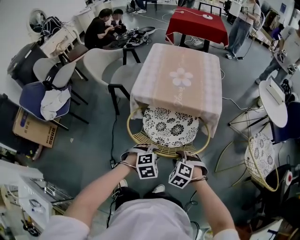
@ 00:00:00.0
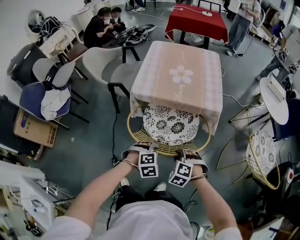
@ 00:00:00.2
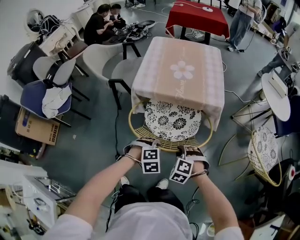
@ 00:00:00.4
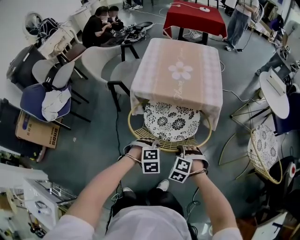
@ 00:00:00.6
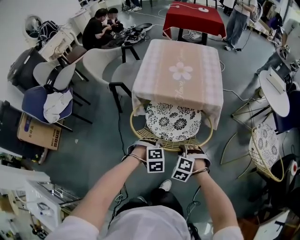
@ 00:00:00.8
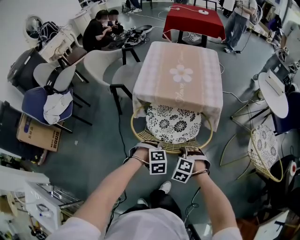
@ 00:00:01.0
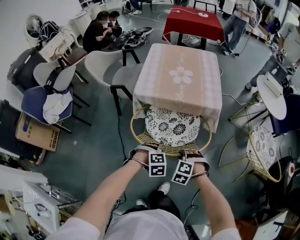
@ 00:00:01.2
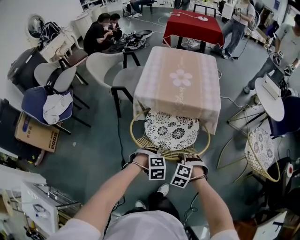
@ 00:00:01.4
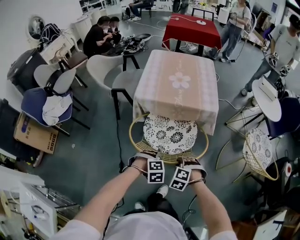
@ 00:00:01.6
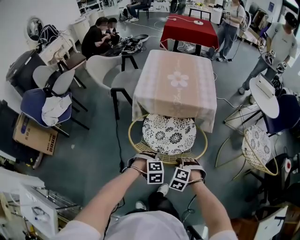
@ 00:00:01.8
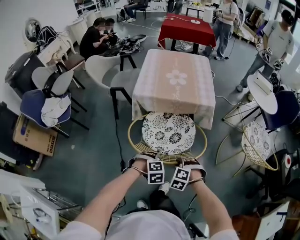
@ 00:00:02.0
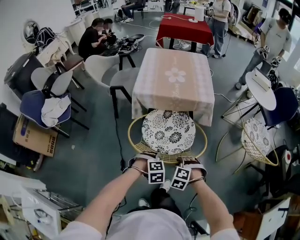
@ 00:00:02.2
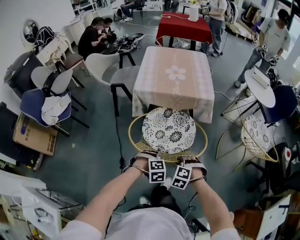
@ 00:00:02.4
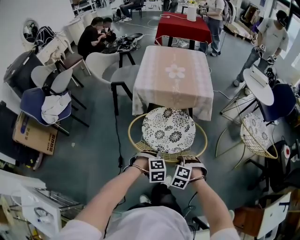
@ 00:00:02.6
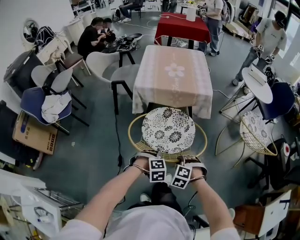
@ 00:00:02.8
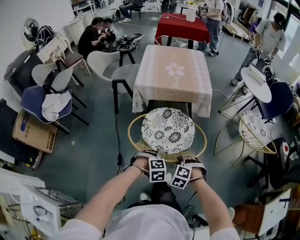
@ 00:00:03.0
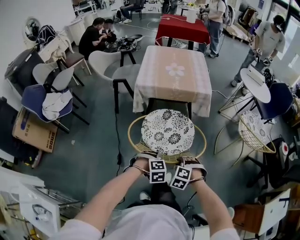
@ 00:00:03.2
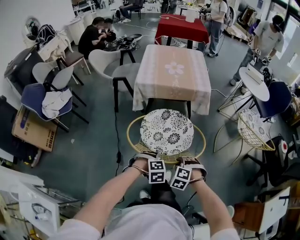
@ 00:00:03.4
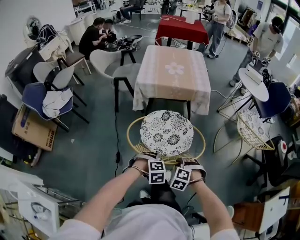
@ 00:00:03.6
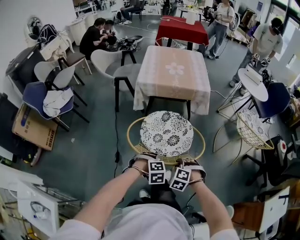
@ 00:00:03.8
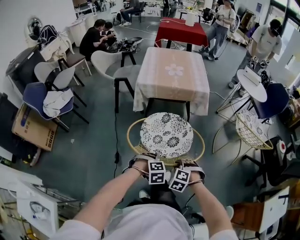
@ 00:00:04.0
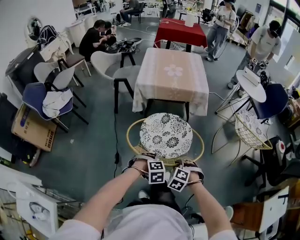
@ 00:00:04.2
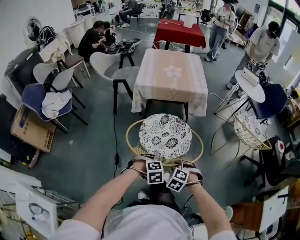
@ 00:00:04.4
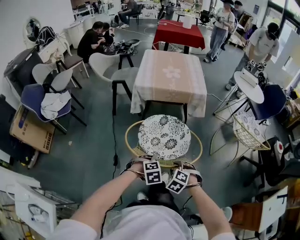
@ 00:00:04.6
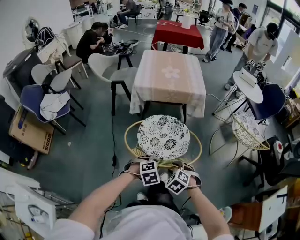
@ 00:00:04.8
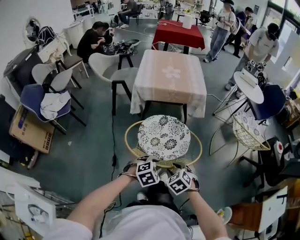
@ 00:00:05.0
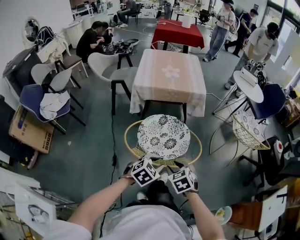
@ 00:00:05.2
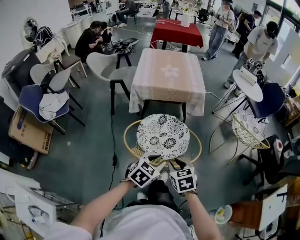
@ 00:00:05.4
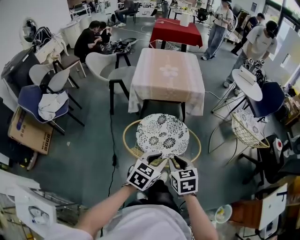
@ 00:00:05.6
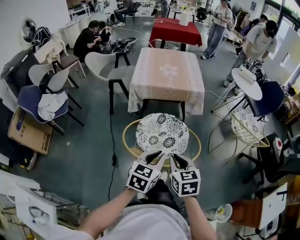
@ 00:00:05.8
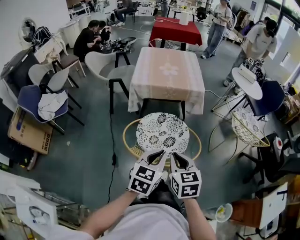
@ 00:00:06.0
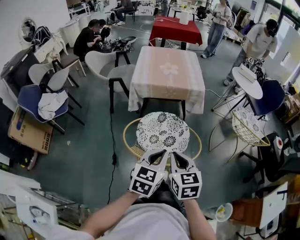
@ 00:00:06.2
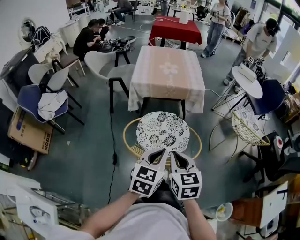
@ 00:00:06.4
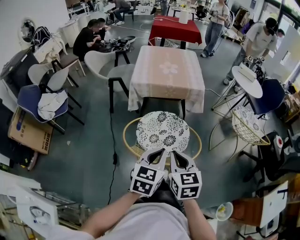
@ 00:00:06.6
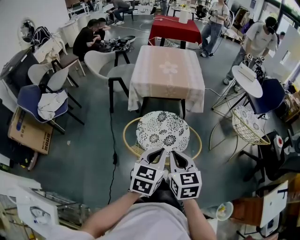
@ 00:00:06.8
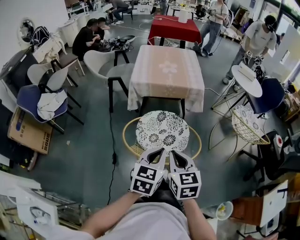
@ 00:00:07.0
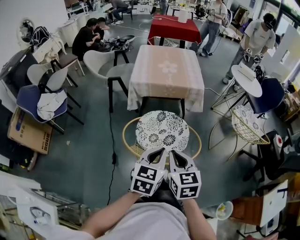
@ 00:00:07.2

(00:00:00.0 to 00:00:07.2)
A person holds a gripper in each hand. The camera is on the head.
00:00:00.0 - 00:00:01.4: The left gripper closes.
00:00:01.4 - 00:00:02.8: The two grippers go approximately 15 cm backward.
00:00:02.8 - 00:00:04.4: Both grippers travel together backward, approximately 10 cm.
00:00:04.4 - 00:00:05.8: The grippers both shift upward by some 20 cm. The left gripper points its fingers some 50 degrees further upward, while the right gripper rotates around the line of its fingers by roughly 60 degrees, clockwise from behind, and closes.
00:00:05.8 - 00:00:07.2: The grippers make only small movements.

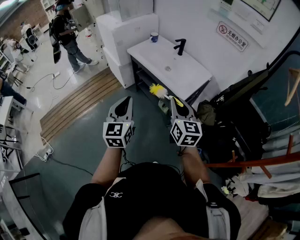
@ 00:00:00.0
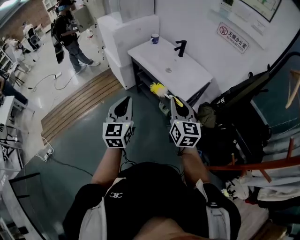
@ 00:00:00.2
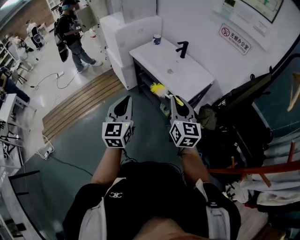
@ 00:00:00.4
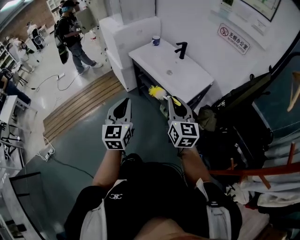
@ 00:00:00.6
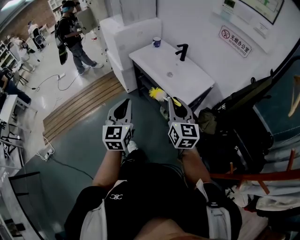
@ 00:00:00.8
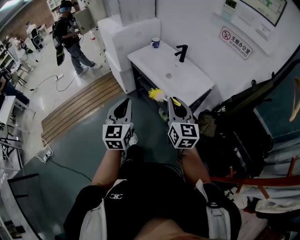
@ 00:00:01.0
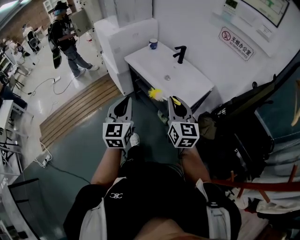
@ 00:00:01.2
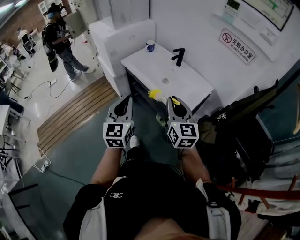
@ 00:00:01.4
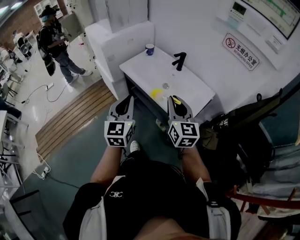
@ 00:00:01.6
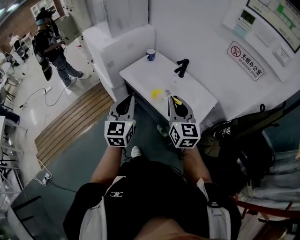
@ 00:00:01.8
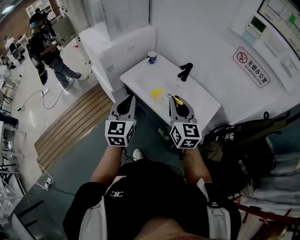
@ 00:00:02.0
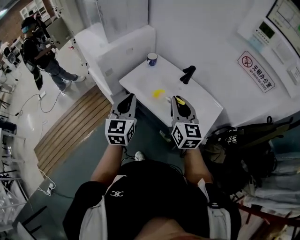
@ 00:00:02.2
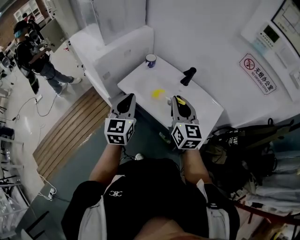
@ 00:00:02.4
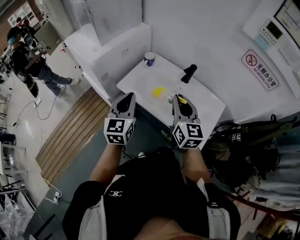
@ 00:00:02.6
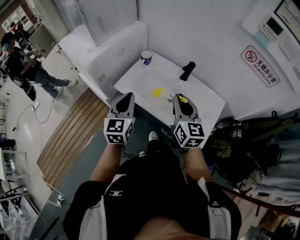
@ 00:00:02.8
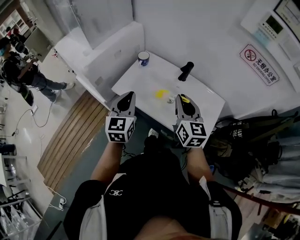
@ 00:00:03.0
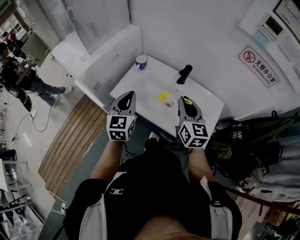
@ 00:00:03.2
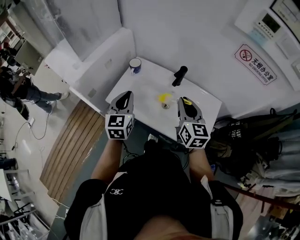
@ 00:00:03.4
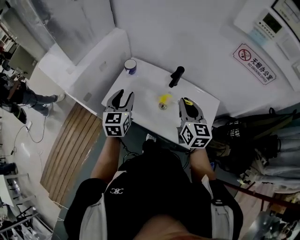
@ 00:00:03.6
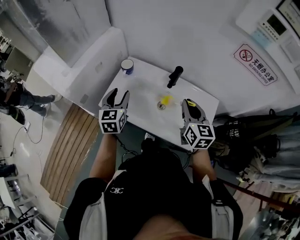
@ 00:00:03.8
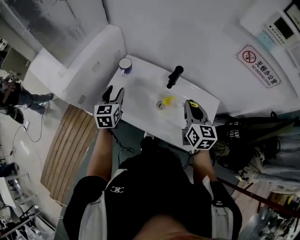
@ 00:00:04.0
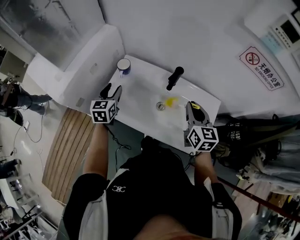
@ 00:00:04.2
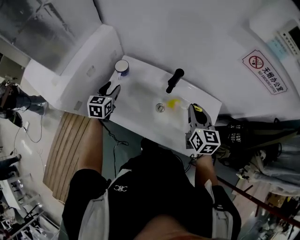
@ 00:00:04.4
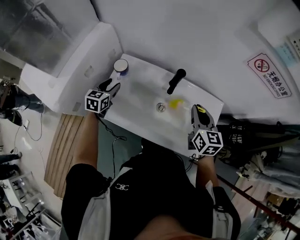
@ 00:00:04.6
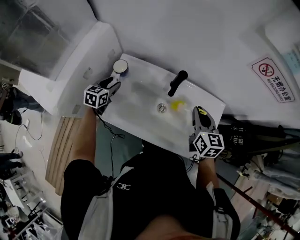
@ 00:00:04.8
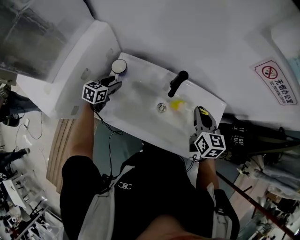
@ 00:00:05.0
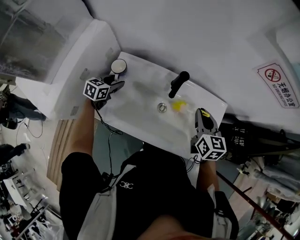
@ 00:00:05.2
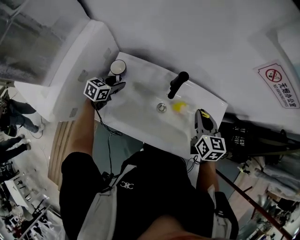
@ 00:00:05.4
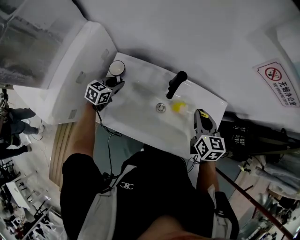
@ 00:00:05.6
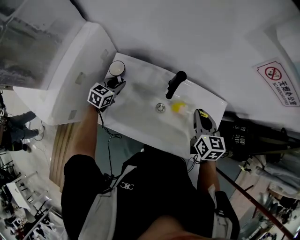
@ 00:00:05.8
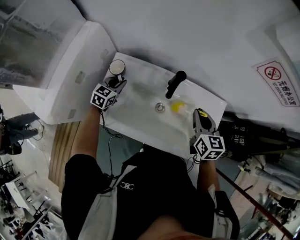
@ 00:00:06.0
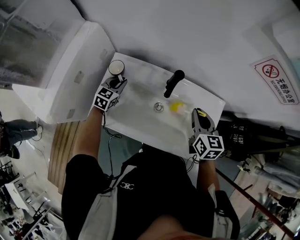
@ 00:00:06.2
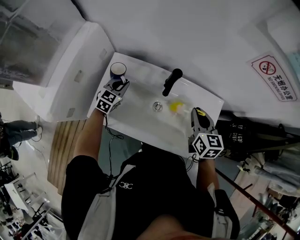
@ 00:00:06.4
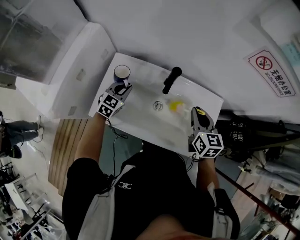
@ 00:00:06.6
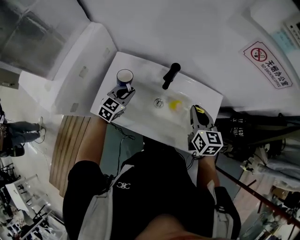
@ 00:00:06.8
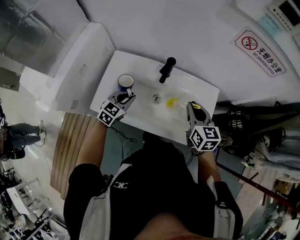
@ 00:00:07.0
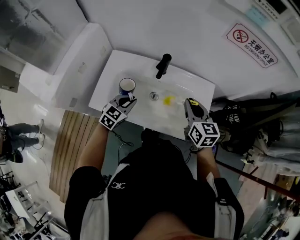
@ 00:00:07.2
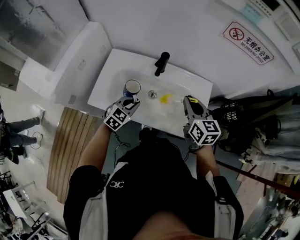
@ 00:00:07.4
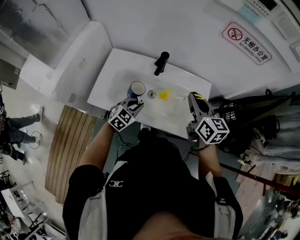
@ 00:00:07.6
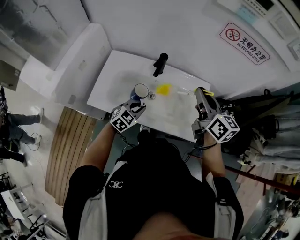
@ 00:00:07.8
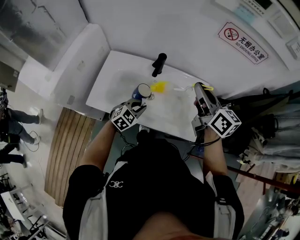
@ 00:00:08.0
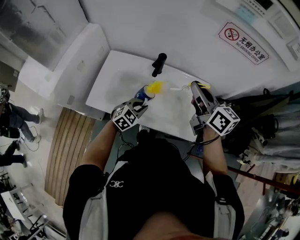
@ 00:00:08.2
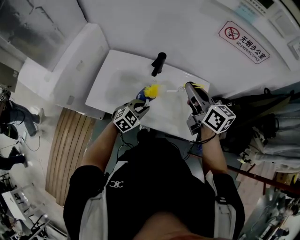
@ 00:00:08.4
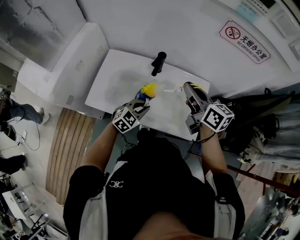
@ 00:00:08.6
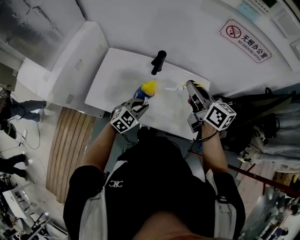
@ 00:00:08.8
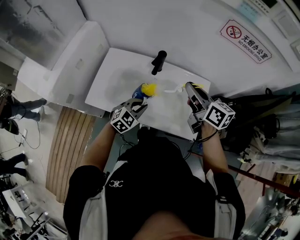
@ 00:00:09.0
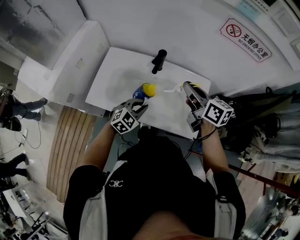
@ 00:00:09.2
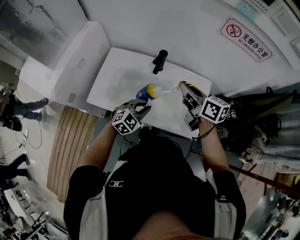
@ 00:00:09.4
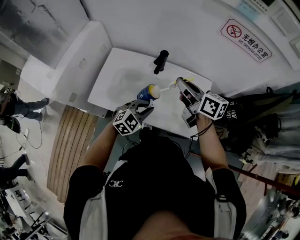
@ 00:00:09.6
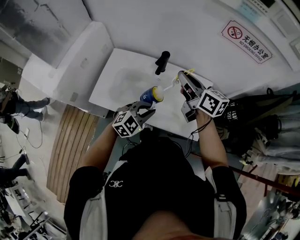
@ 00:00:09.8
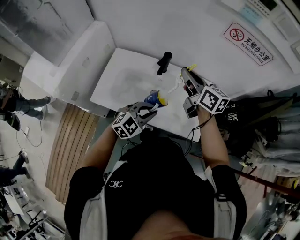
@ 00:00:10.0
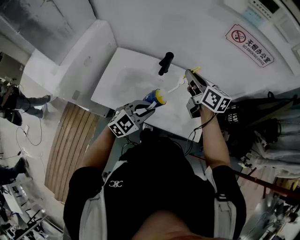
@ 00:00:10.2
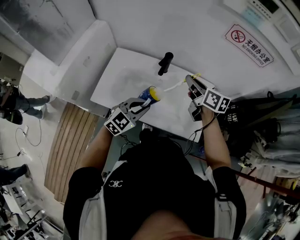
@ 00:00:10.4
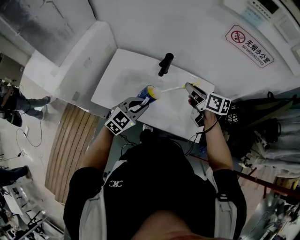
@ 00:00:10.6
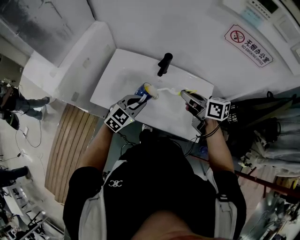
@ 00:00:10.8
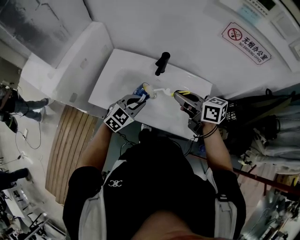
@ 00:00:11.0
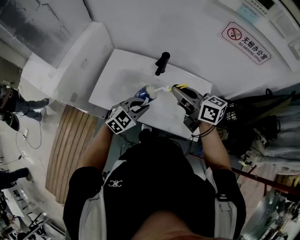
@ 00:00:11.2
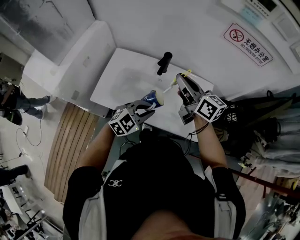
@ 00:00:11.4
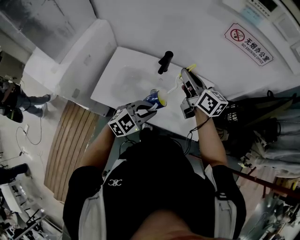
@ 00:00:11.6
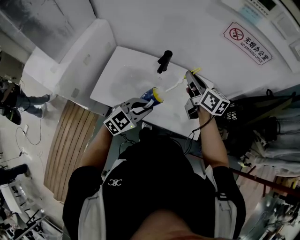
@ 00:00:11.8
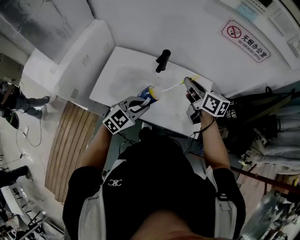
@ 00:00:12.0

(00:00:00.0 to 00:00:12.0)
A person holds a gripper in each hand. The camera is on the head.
00:00:00.0 - 00:00:01.6: The two grippers go roughly 20 cm forward.
00:00:01.6 - 00:00:03.0: The grippers both shift forward by some 25 cm.
00:00:03.0 - 00:00:04.4: The right gripper travels to the right, forward and downward by roughly 20 cm. The left gripper goes some 30 cm forward and downward, swivels some 20 degrees, and opens its fingers.
00:00:04.4 - 00:00:06.0: The right gripper heads downward, covering approximately 5 cm; the left gripper is displaced downward and forward by roughly 15 cm, swivels some 30 degrees, and closes up.
00:00:06.0 - 00:00:07.6: The right gripper travels upward and backward by about 15 cm. Meanwhile the left gripper shifts some 25 cm to the right and backward, and rotates roughly 20 degrees.
00:00:09.0 - 00:00:10.4: The left gripper travels upward by about 10 cm; the right gripper moves about 5 cm.
00:00:10.4 - 00:00:12.0: The right gripper moves approximately 5 cm upward and comes back.

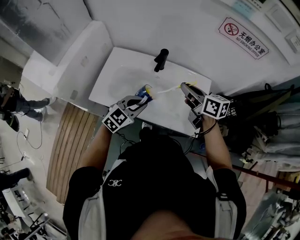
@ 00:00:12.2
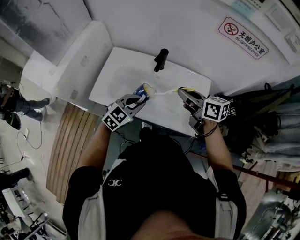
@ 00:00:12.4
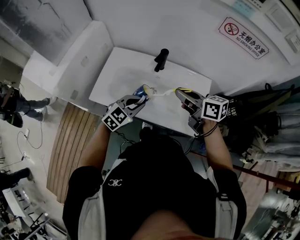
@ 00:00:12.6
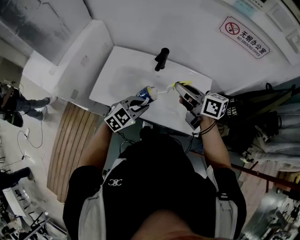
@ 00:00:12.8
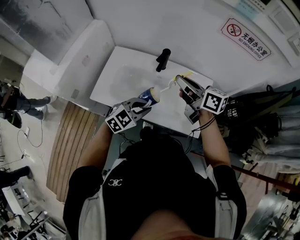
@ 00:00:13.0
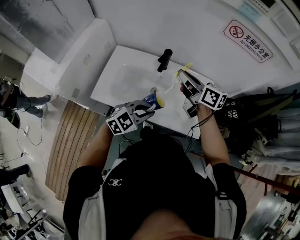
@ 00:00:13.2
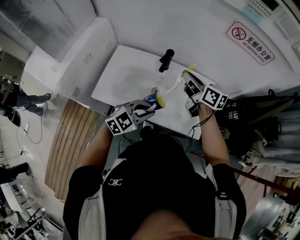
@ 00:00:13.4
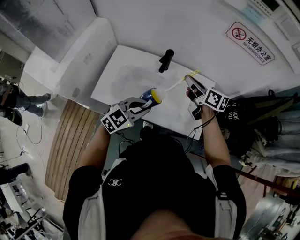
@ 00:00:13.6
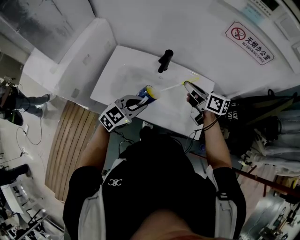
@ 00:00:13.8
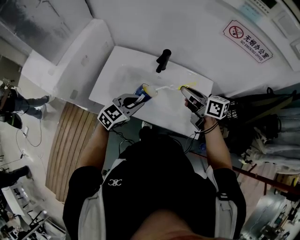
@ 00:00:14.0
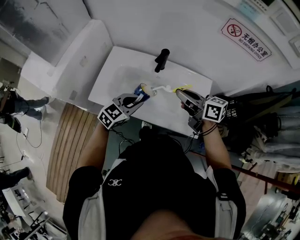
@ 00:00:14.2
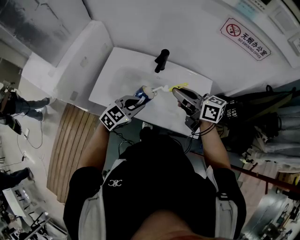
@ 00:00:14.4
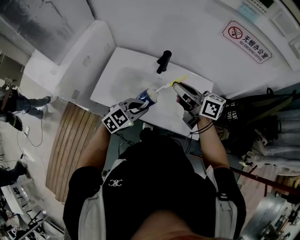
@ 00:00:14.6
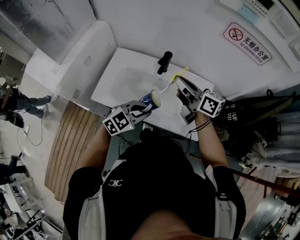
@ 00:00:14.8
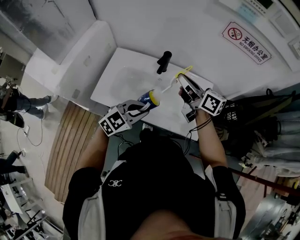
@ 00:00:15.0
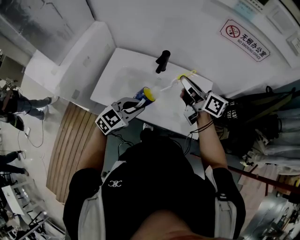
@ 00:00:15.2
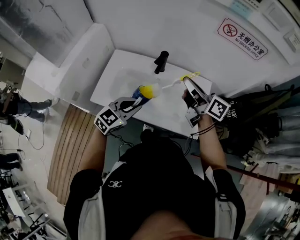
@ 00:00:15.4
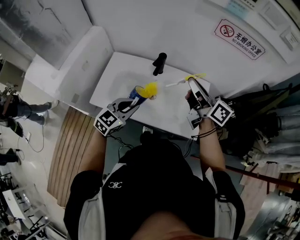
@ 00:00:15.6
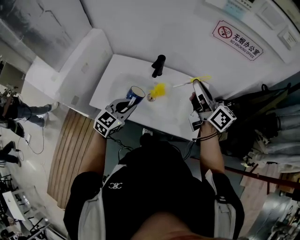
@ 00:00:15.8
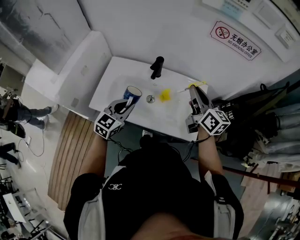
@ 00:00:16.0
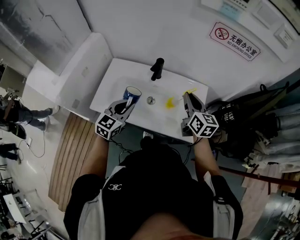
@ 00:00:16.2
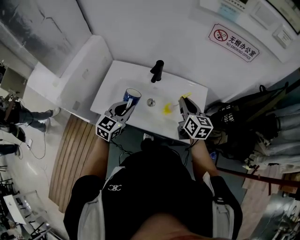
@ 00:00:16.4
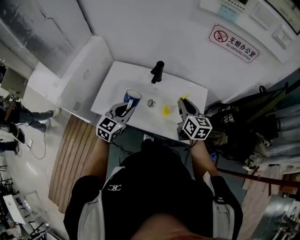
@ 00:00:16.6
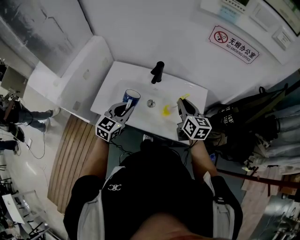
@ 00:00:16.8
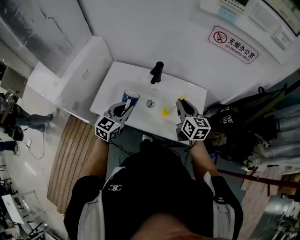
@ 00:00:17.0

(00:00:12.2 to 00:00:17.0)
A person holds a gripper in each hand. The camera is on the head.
00:00:13.8 - 00:00:15.4: The right gripper moves upward, some 10 cm.
00:00:15.4 - 00:00:17.0: The right gripper heads downward, covering some 10 cm, and rotates approximately 40 degrees.
